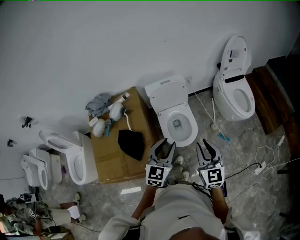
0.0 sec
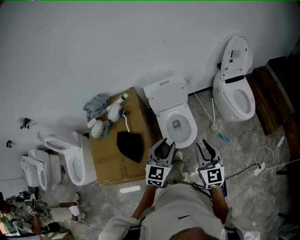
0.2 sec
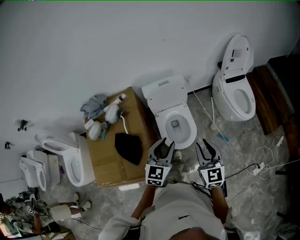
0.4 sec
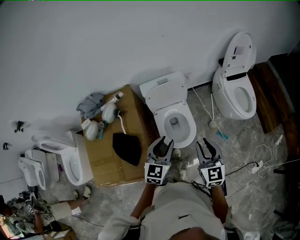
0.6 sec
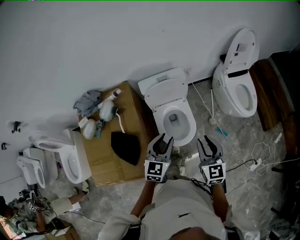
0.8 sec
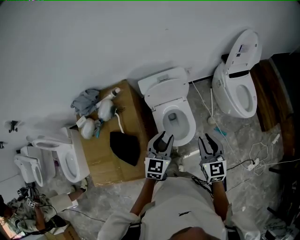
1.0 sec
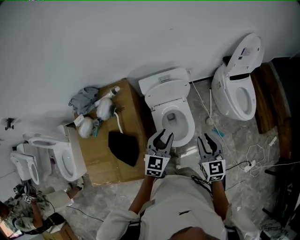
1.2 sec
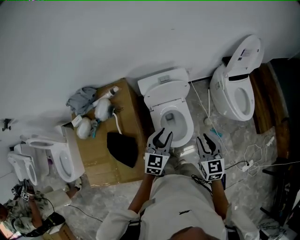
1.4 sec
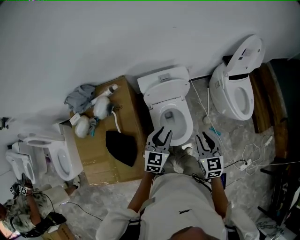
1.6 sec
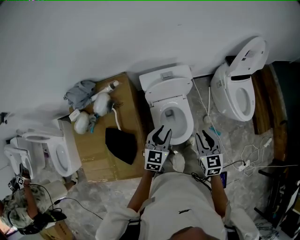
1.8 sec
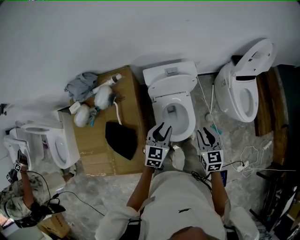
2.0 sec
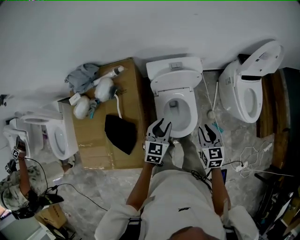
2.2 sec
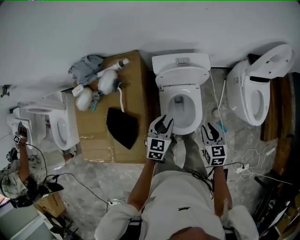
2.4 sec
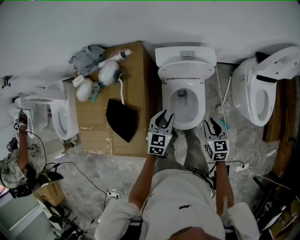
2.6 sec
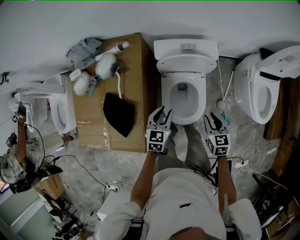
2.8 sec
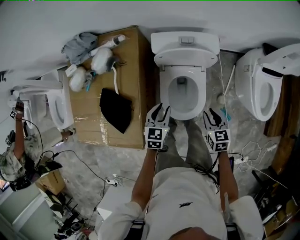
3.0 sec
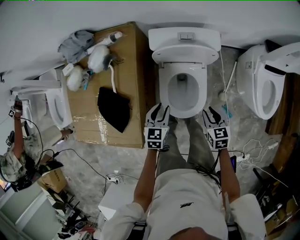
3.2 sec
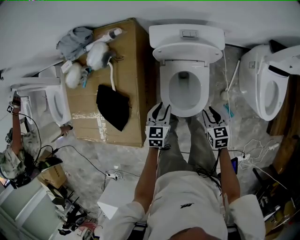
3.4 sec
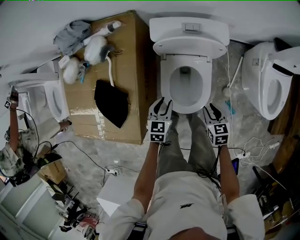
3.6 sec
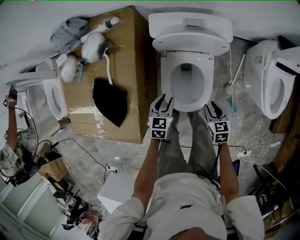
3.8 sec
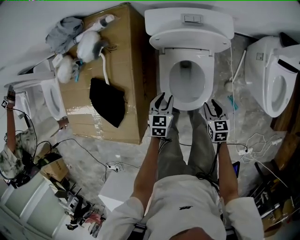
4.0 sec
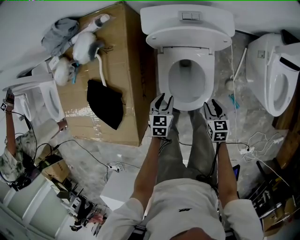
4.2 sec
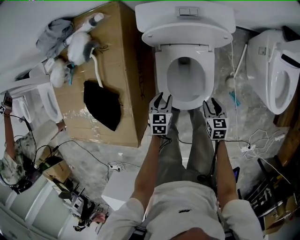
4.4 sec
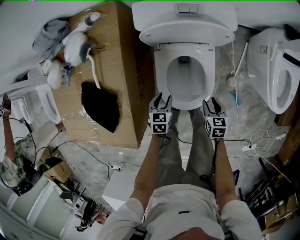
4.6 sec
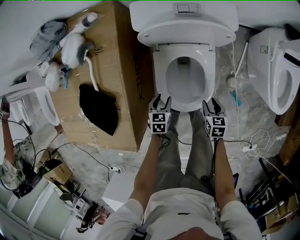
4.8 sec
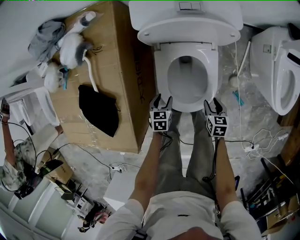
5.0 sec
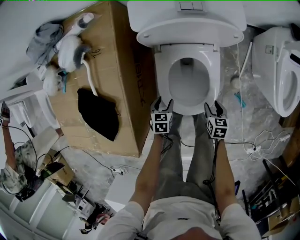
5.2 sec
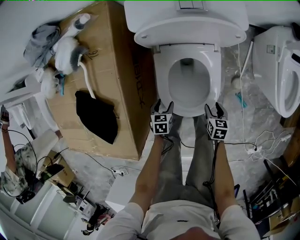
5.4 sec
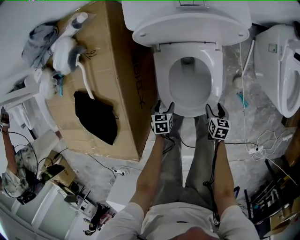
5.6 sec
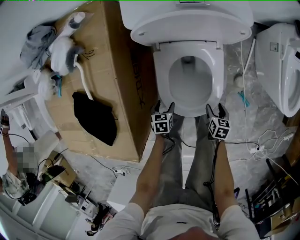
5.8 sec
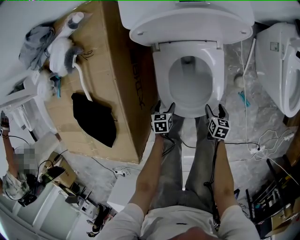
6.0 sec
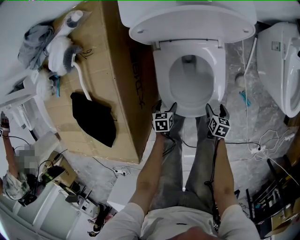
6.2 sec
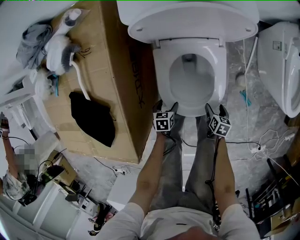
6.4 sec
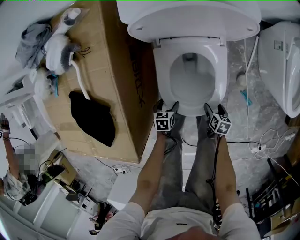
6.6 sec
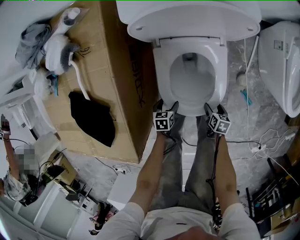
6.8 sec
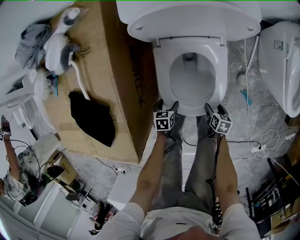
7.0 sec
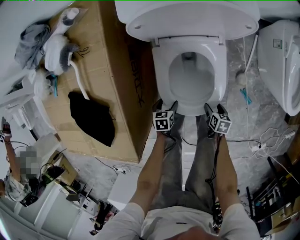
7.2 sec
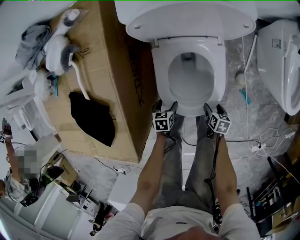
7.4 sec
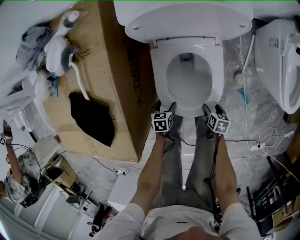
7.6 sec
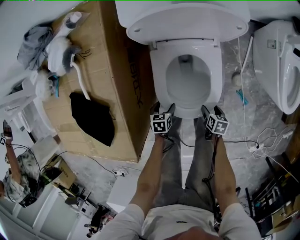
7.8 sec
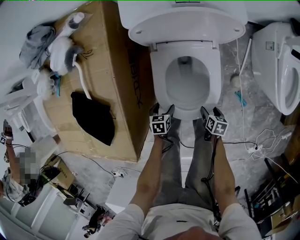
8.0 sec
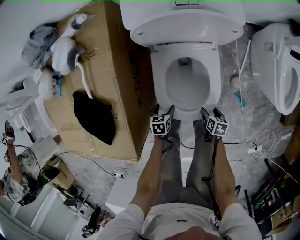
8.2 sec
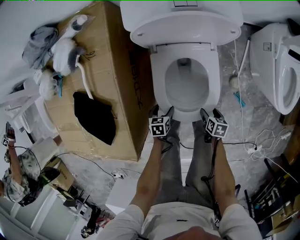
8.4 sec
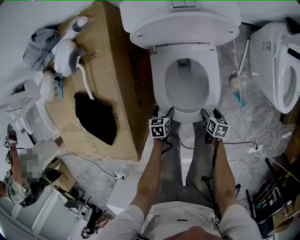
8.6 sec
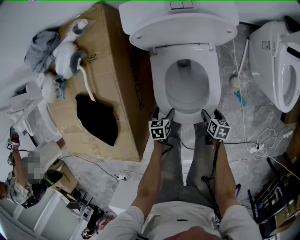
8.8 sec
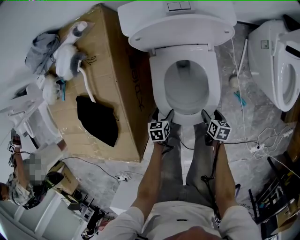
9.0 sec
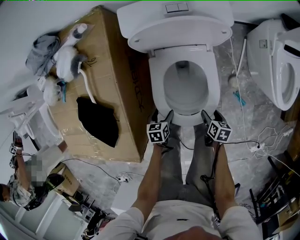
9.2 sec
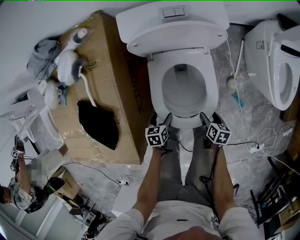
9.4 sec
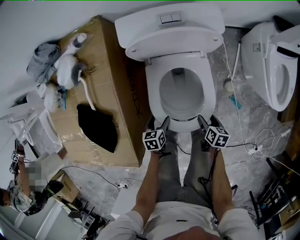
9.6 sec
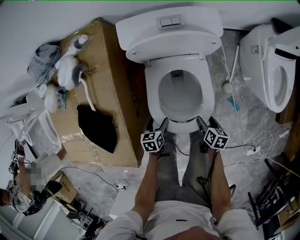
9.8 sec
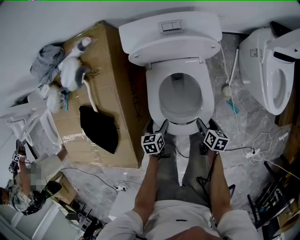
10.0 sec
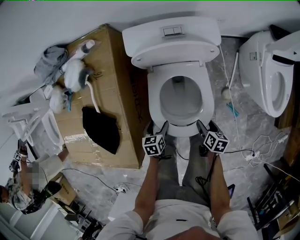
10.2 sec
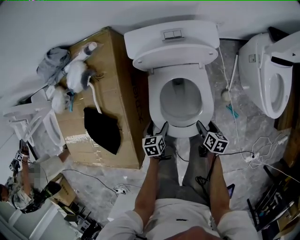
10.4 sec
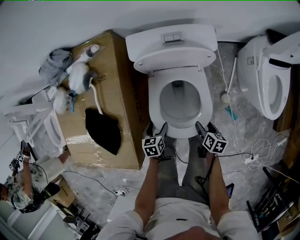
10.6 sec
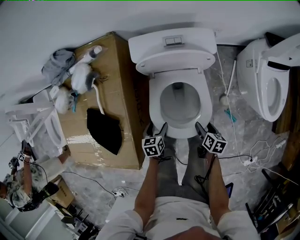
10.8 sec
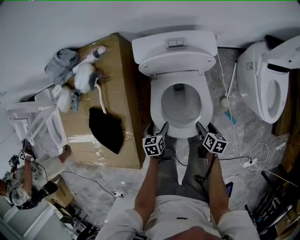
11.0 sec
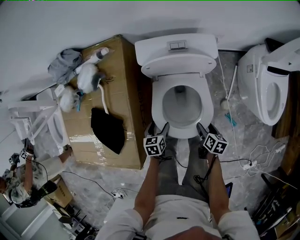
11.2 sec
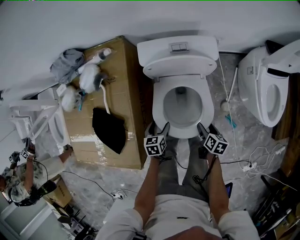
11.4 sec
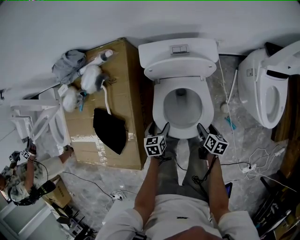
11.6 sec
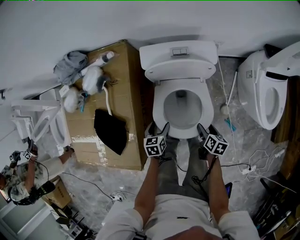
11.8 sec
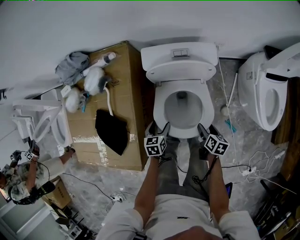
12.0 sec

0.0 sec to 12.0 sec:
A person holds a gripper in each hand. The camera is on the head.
0.0 sec to 1.6 sec: The two grippers go roughly 25 cm forward and downward.
1.6 sec to 3.0 sec: The two grippers go some 20 cm downward. The right gripper changes its angle by approximately 30 degrees, while the left gripper rotates roughly 30 degrees.
3.0 sec to 4.4 sec: Both grippers travel together downward, roughly 20 cm.
4.4 sec to 6.0 sec: The two grippers go some 20 cm downward. The left gripper opens; the right gripper swivels some 20 degrees, and opens its fingers.
6.0 sec to 7.6 sec: The grippers stay close to where they were, moving slightly.
7.6 sec to 9.0 sec: Both grippers move upward, about 10 cm.
9.0 sec to 10.4 sec: The grippers both shift upward by some 10 cm.
10.4 sec to 12.0 sec: The right gripper shifts about 5 cm upward; the left gripper travels upward and forward by about 10 cm.

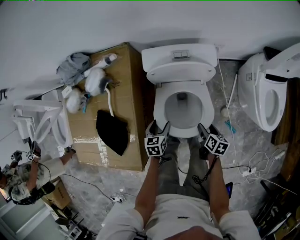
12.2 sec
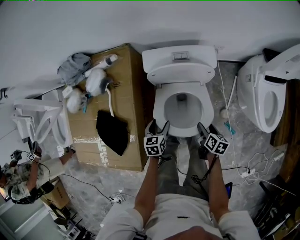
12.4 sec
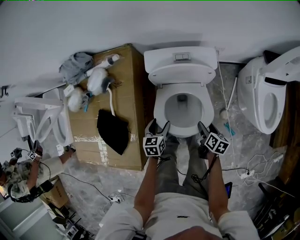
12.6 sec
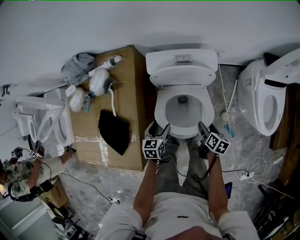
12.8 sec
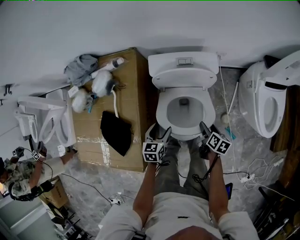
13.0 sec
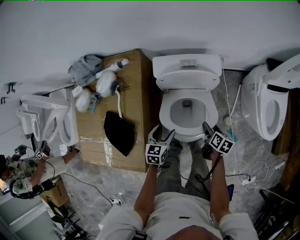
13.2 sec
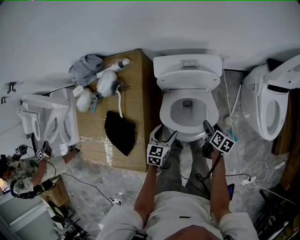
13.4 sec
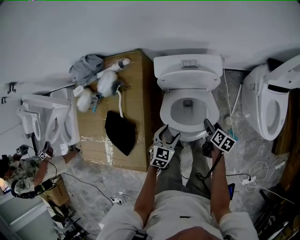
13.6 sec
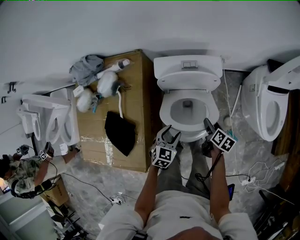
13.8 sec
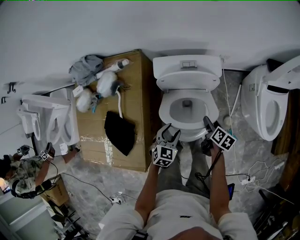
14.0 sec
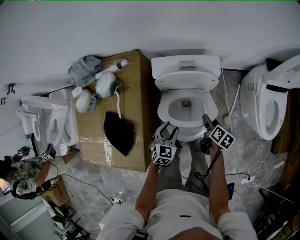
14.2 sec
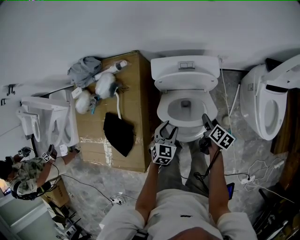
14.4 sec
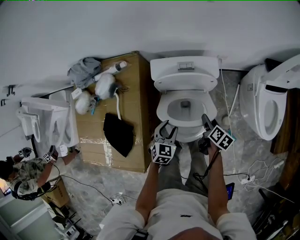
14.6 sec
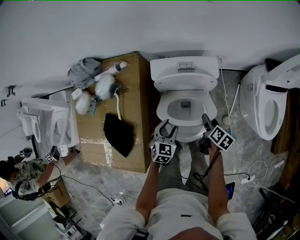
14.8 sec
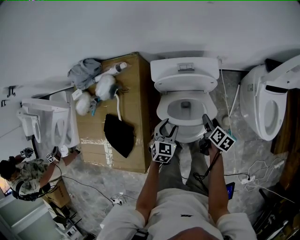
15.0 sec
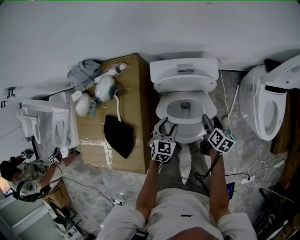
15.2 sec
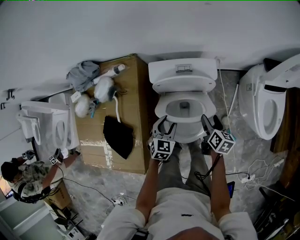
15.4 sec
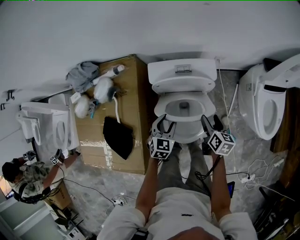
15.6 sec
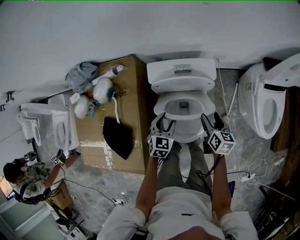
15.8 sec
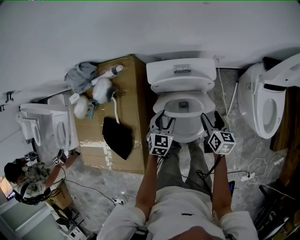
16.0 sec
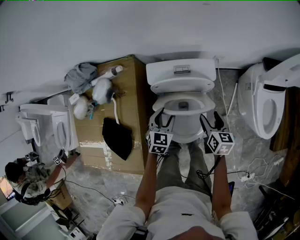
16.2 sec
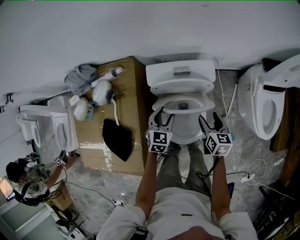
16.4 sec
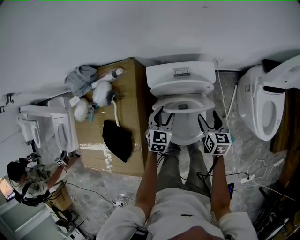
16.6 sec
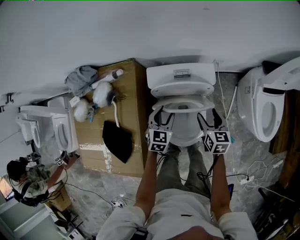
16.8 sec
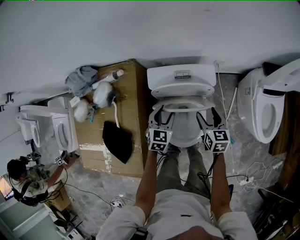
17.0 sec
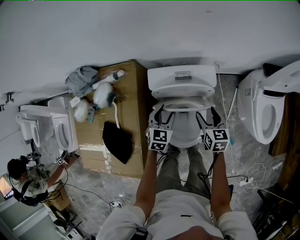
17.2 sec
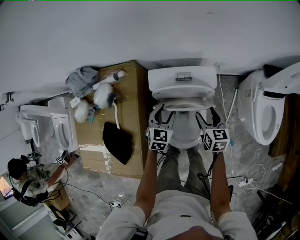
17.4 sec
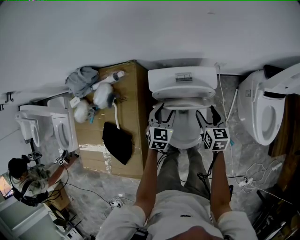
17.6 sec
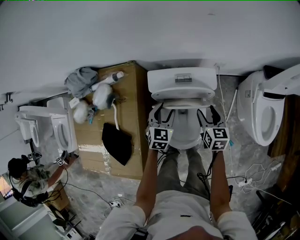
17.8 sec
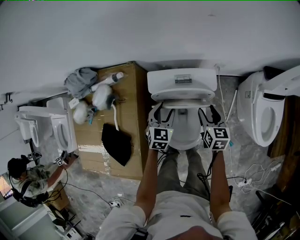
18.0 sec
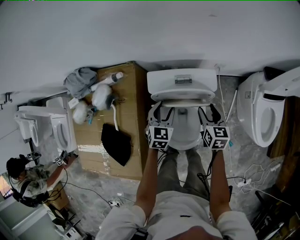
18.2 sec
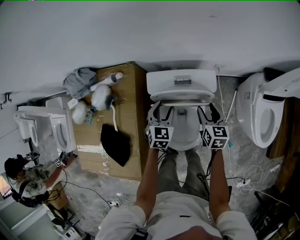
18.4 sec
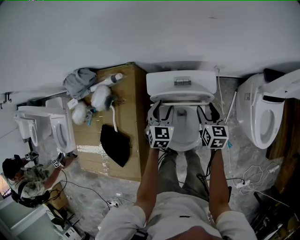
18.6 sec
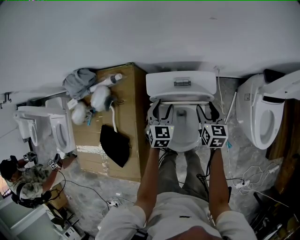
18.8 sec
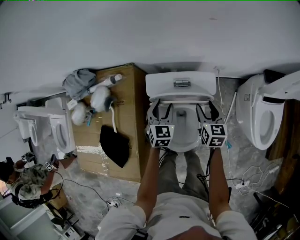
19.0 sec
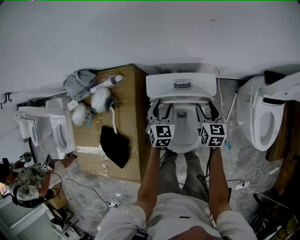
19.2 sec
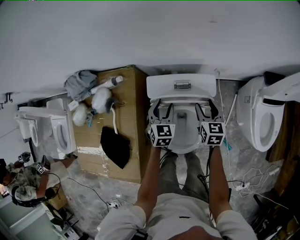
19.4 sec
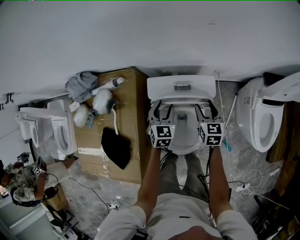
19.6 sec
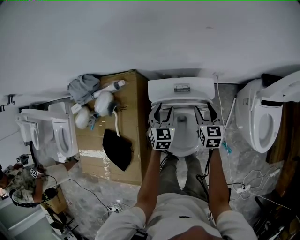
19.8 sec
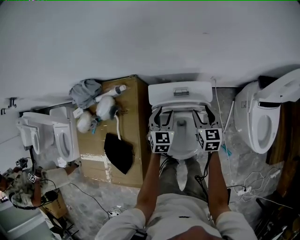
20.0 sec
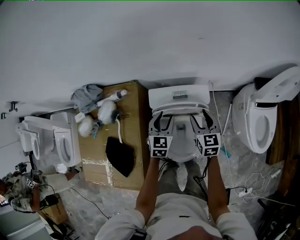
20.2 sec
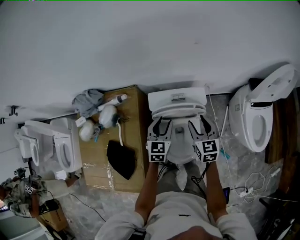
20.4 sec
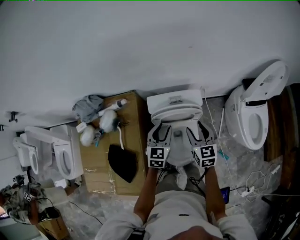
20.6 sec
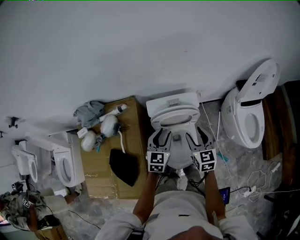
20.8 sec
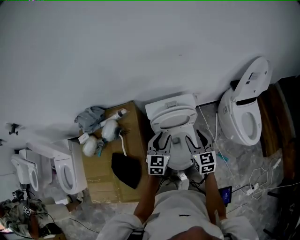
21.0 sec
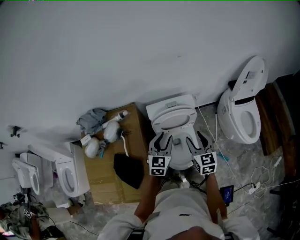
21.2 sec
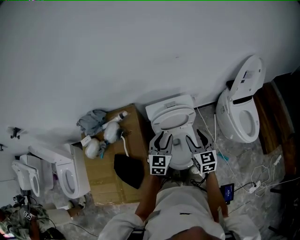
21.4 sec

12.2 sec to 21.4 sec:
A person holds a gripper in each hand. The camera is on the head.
12.2 sec to 13.8 sec: The left gripper shifts about 10 cm upward and to the right, and changes its angle by roughly 30 degrees. Meanwhile the right gripper goes about 5 cm forward.
13.8 sec to 15.2 sec: The left gripper goes some 5 cm forward; the right gripper shifts by about 5 cm.
15.2 sec to 16.8 sec: The right gripper goes roughly 5 cm forward, and changes its angle by approximately 30 degrees, while the left gripper shifts roughly 10 cm forward.
16.8 sec to 18.4 sec: Both grippers move forward, roughly 5 cm.
18.4 sec to 19.8 sec: The grippers stay close to where they were, moving slightly.
19.8 sec to 21.4 sec: The right gripper moves backward and upward, about 30 cm; the left gripper heads upward and backward, covering some 25 cm, and swivels roughly 30 degrees.

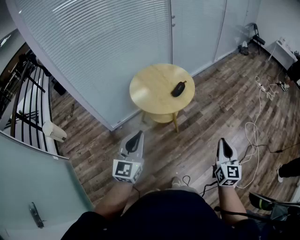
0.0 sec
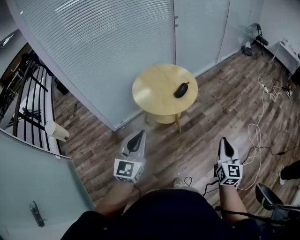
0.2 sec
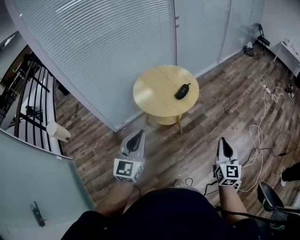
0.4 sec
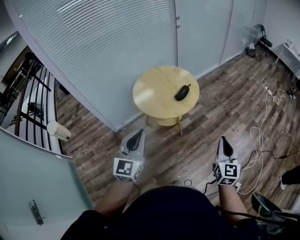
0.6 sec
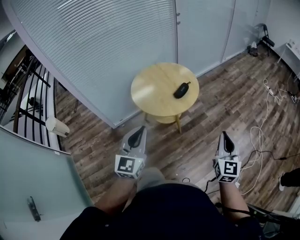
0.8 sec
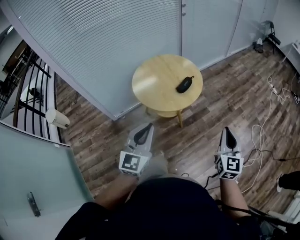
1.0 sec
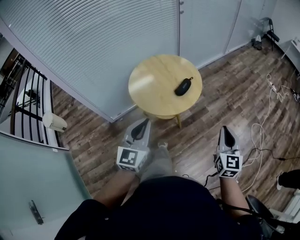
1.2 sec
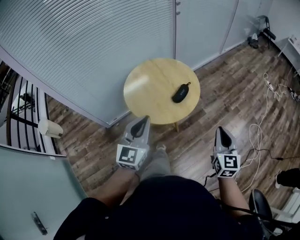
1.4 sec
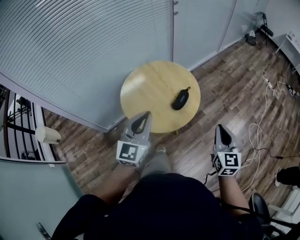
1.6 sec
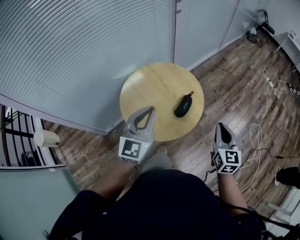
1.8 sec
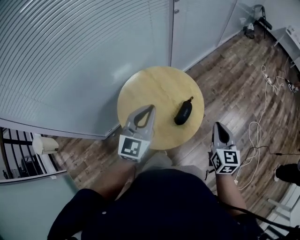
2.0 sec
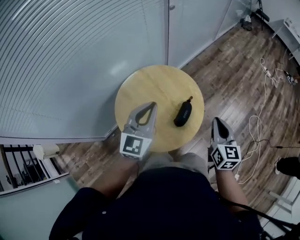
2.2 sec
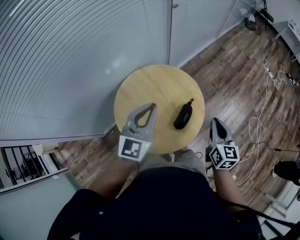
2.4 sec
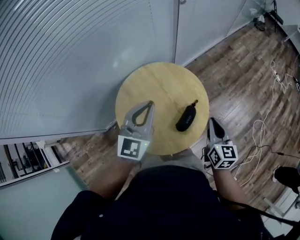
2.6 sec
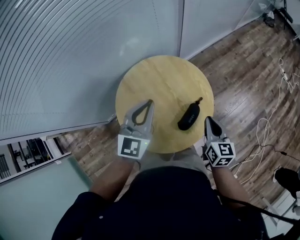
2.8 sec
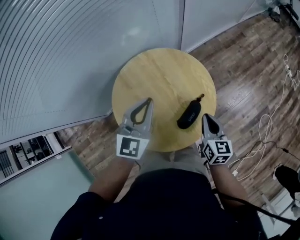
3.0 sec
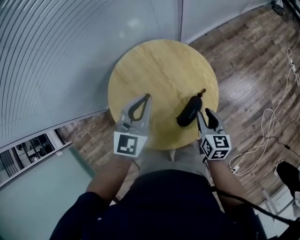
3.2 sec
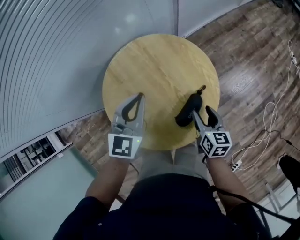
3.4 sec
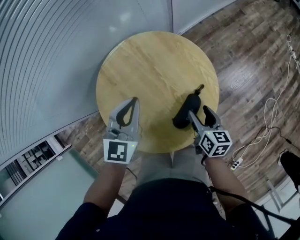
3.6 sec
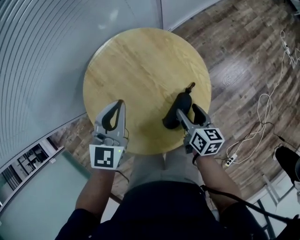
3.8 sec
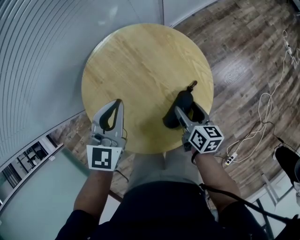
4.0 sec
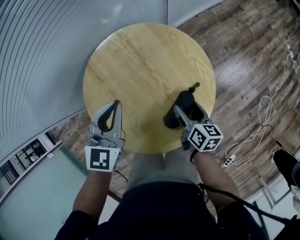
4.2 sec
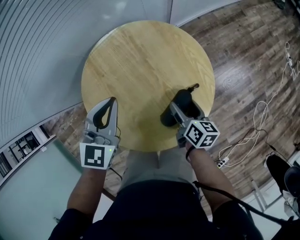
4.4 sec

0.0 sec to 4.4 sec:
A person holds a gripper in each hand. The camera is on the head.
0.0 sec to 1.4 sec: Both grippers move forward, roughly 25 cm.
1.4 sec to 3.0 sec: The left gripper is displaced forward by approximately 40 cm. Meanwhile the right gripper goes some 40 cm forward, downward and to the left, and swivels some 30 degrees.
3.0 sec to 4.4 sec: Both grippers travel together downward, some 15 cm. The right gripper swivels roughly 30 degrees, and opens.
